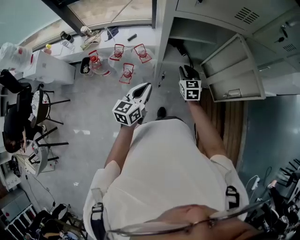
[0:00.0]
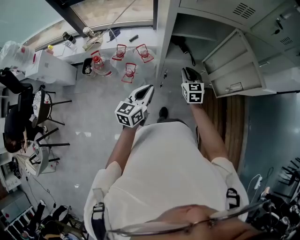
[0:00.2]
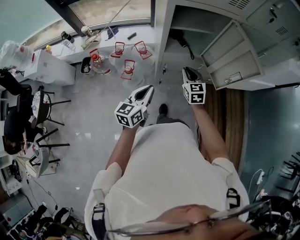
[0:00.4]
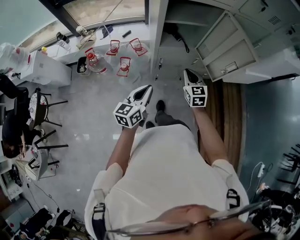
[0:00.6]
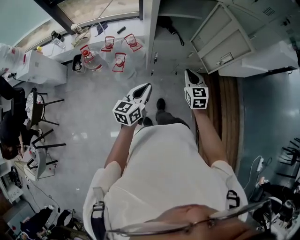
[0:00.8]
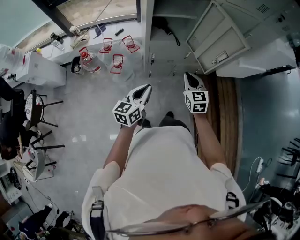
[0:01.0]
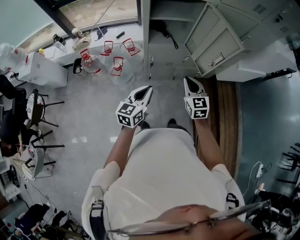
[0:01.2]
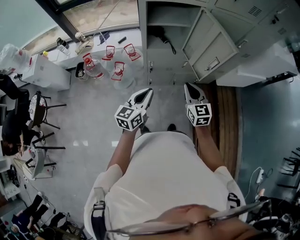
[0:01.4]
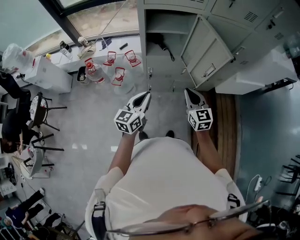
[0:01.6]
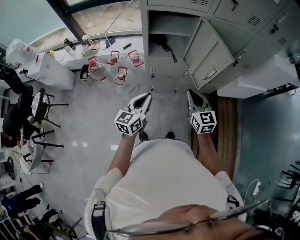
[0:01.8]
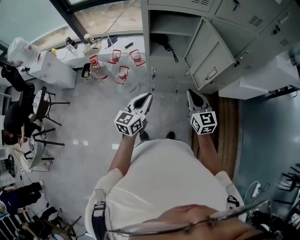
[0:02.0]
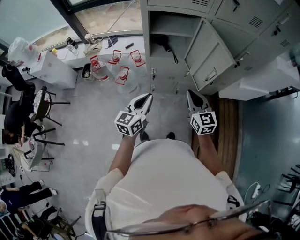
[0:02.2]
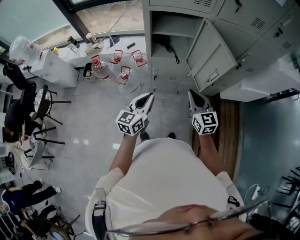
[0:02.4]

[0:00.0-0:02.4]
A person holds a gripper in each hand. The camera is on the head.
0:00.0 to 0:01.2: The grippers both shift backward and to the right by roughly 20 cm.
0:01.2 to 0:02.4: The right gripper is displaced upward by about 5 cm, while the left gripper ends up about 5 cm from where it was.

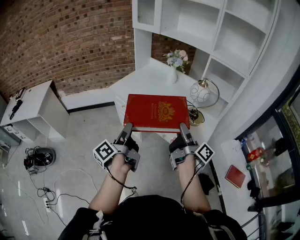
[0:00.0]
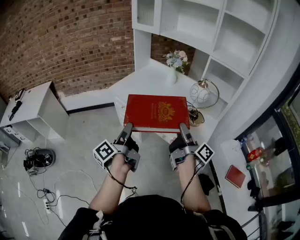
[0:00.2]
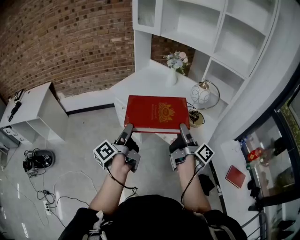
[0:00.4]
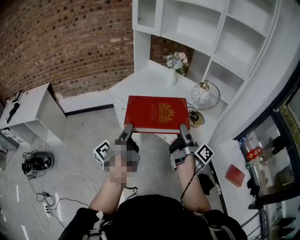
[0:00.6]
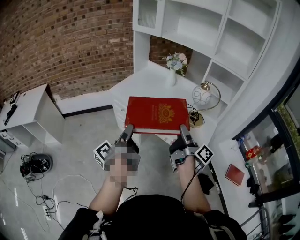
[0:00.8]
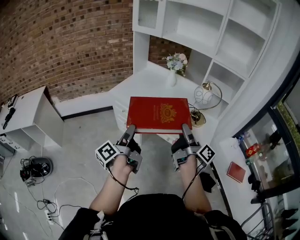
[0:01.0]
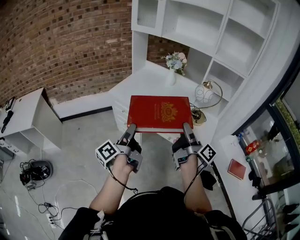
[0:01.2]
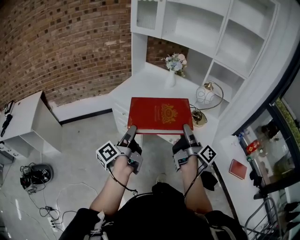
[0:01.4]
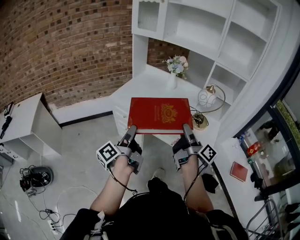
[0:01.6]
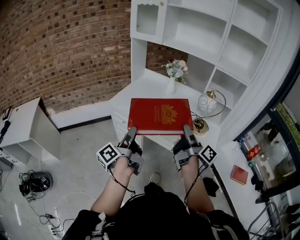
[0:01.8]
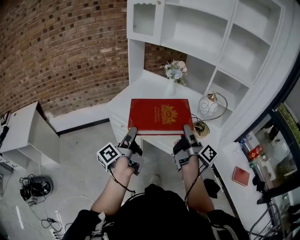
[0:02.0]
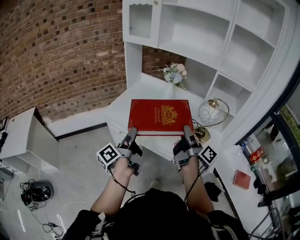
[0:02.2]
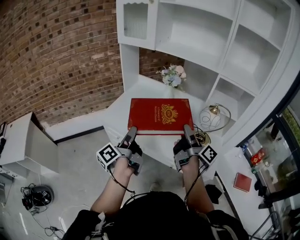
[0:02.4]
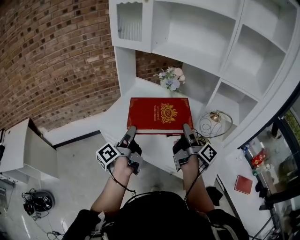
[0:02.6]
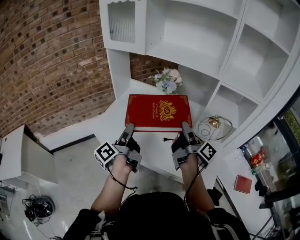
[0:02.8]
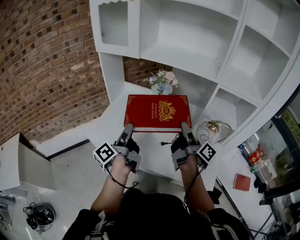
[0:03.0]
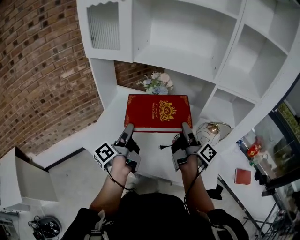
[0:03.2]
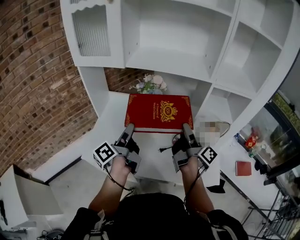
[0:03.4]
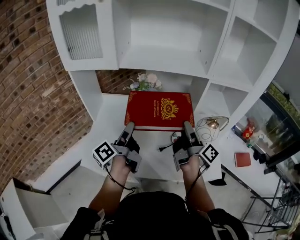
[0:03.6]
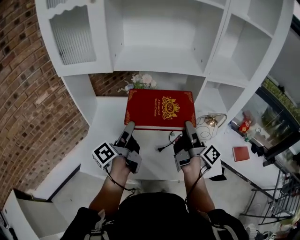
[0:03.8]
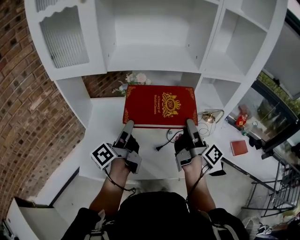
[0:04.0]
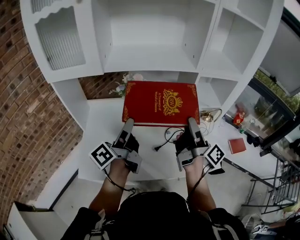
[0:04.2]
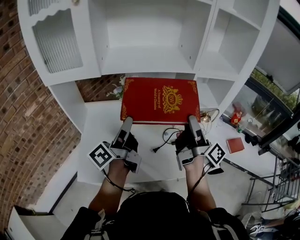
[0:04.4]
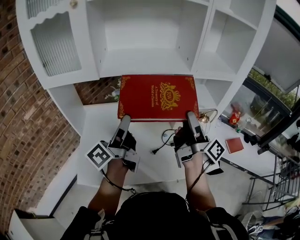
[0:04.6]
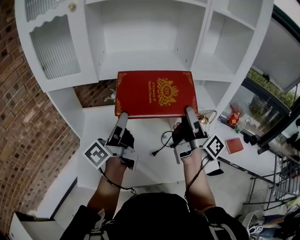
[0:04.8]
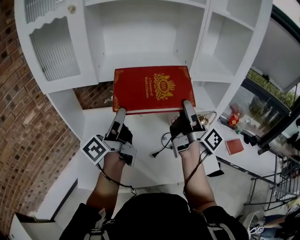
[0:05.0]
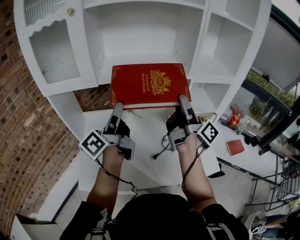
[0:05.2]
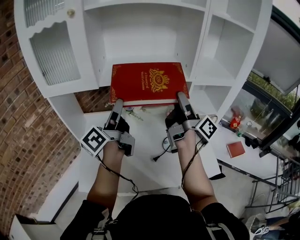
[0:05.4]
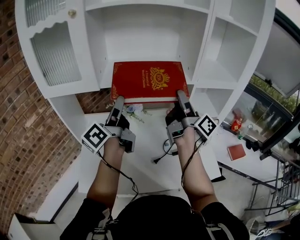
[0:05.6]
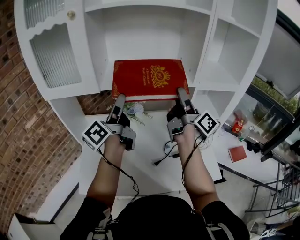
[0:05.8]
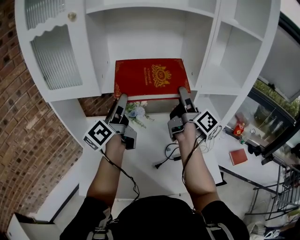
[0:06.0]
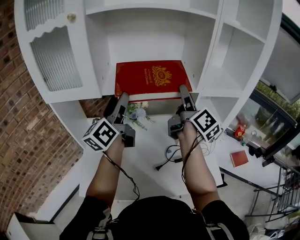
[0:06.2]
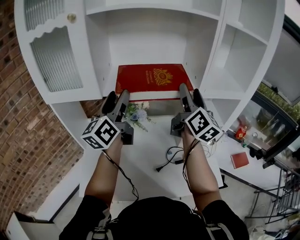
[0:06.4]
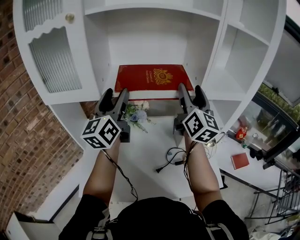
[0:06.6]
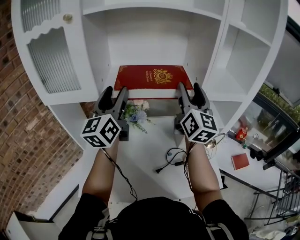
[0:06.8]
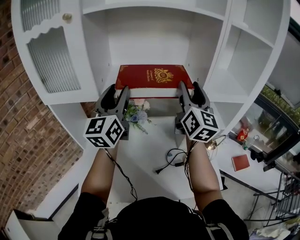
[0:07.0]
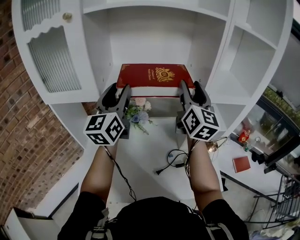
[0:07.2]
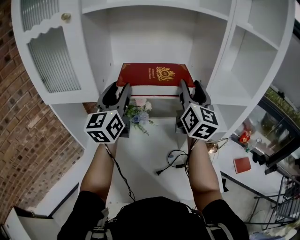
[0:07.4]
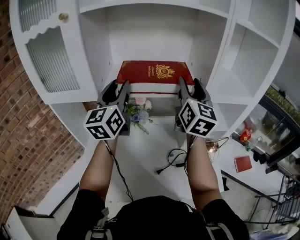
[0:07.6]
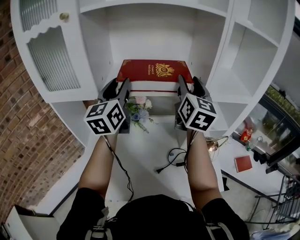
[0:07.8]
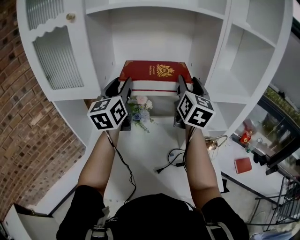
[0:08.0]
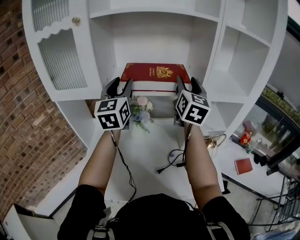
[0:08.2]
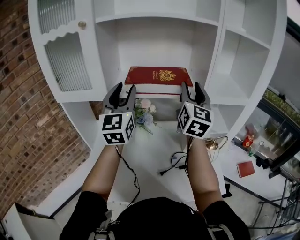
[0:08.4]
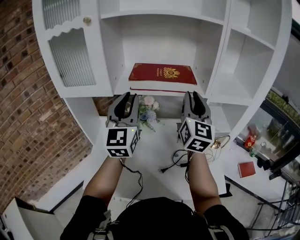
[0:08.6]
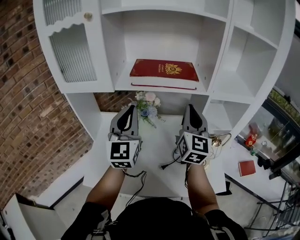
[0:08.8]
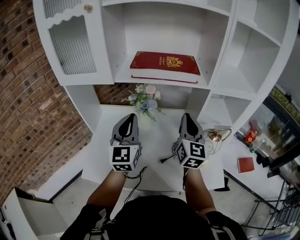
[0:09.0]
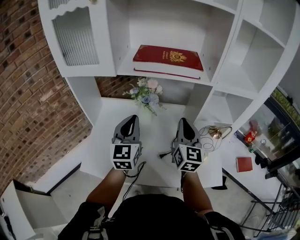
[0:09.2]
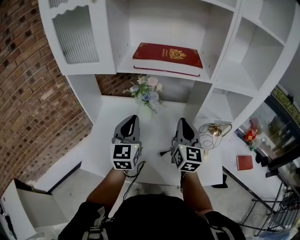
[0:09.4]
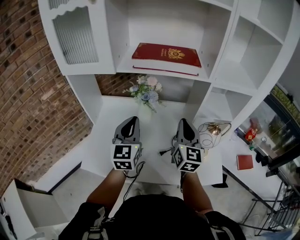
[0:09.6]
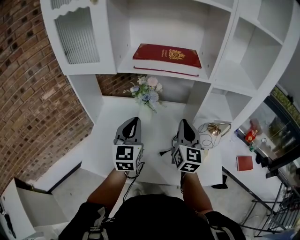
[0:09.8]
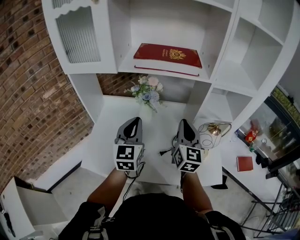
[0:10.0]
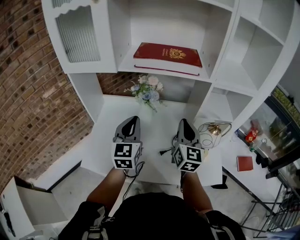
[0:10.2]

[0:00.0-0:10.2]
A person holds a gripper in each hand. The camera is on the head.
0:00.0 to 0:01.4: Both grippers travel together to the left, roughly 10 cm.
0:01.4 to 0:03.0: The two grippers go roughly 40 cm forward.
0:03.0 to 0:04.4: The right gripper heads upward, covering approximately 5 cm, and turns by roughly 30 degrees. The left gripper moves roughly 15 cm, and swivels roughly 30 degrees.
0:04.4 to 0:05.8: Both grippers move forward and upward, approximately 15 cm.
0:05.8 to 0:07.2: The left gripper goes about 5 cm forward, and rolls clockwise, seen from behind, by approximately 60 degrees; the right gripper moves upward and forward, approximately 10 cm, and rotates around the line of its fingers by some 70 degrees, counterclockwise from behind.
0:07.2 to 0:08.8: The left gripper is displaced backward by roughly 10 cm, changes its angle by roughly 20 degrees, and closes its fingers. The right gripper goes about 10 cm backward and downward, and closes its fingers.
0:08.8 to 0:10.2: The right gripper travels downward and backward by about 10 cm. The left gripper is displaced downward by about 10 cm.

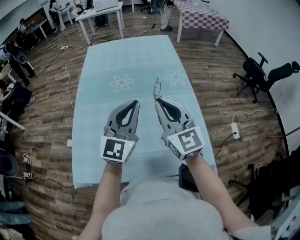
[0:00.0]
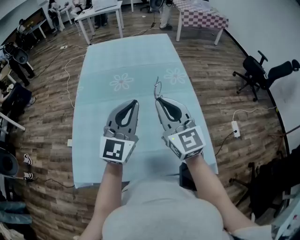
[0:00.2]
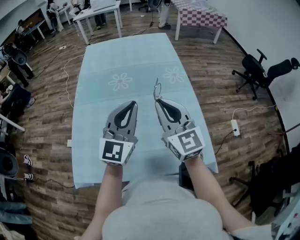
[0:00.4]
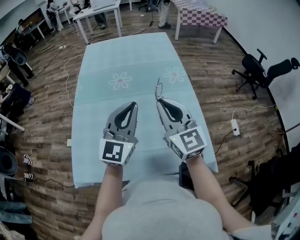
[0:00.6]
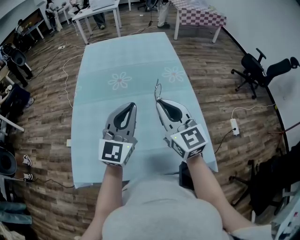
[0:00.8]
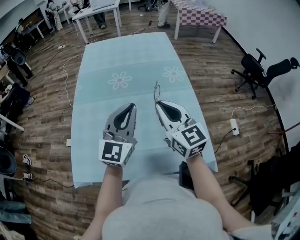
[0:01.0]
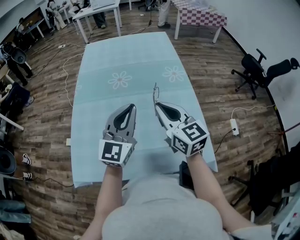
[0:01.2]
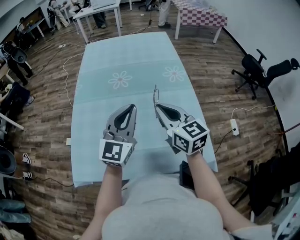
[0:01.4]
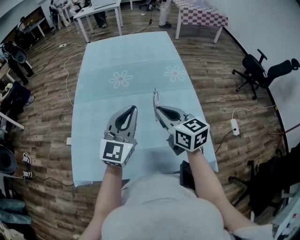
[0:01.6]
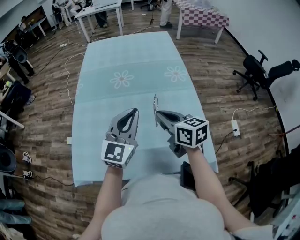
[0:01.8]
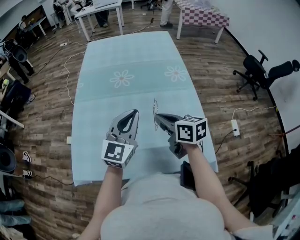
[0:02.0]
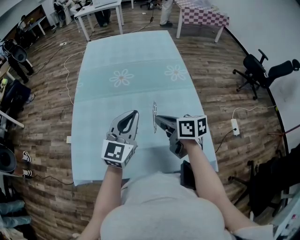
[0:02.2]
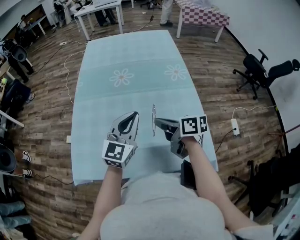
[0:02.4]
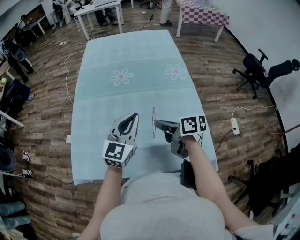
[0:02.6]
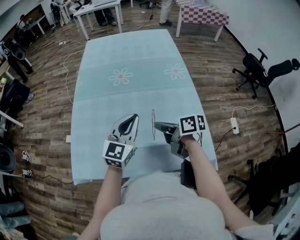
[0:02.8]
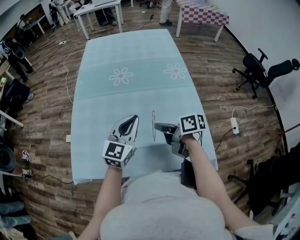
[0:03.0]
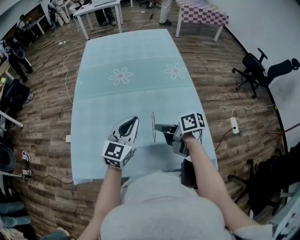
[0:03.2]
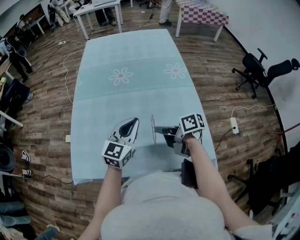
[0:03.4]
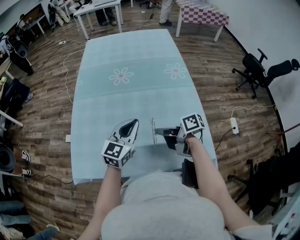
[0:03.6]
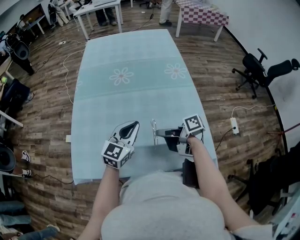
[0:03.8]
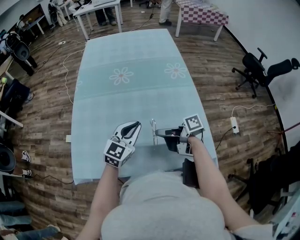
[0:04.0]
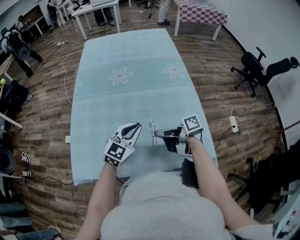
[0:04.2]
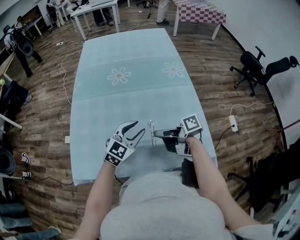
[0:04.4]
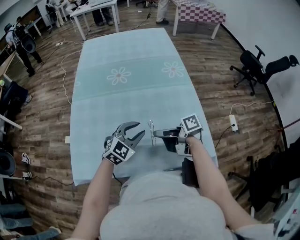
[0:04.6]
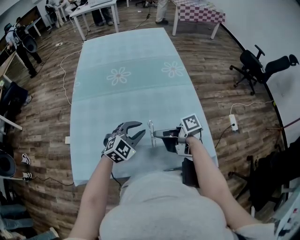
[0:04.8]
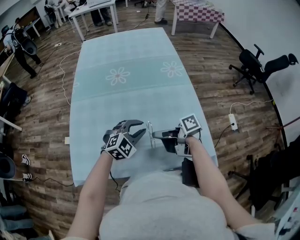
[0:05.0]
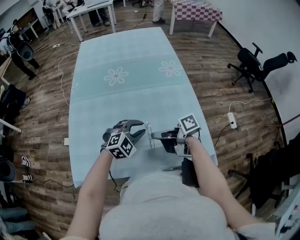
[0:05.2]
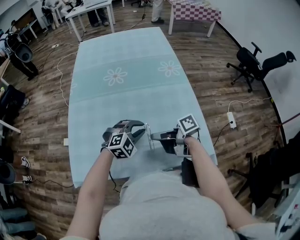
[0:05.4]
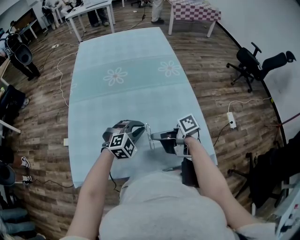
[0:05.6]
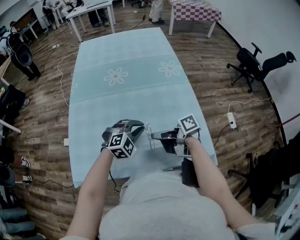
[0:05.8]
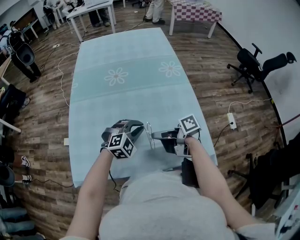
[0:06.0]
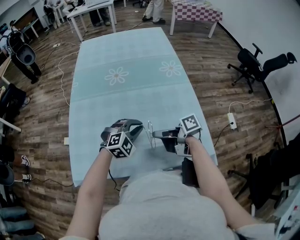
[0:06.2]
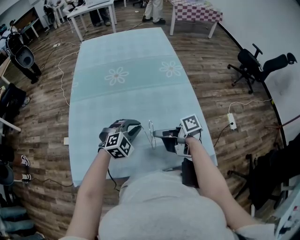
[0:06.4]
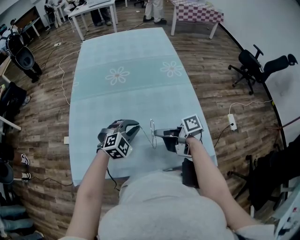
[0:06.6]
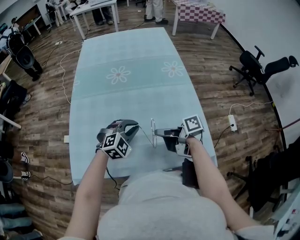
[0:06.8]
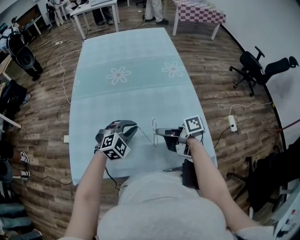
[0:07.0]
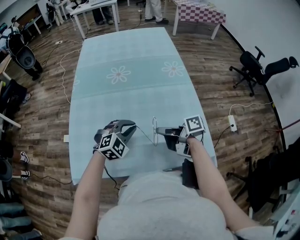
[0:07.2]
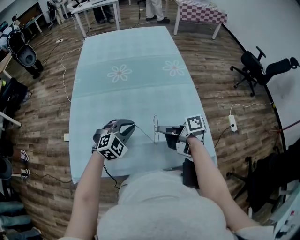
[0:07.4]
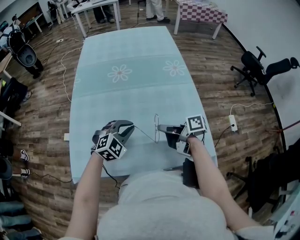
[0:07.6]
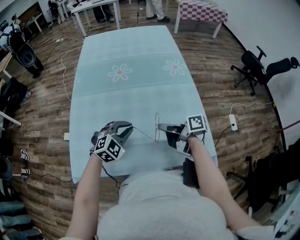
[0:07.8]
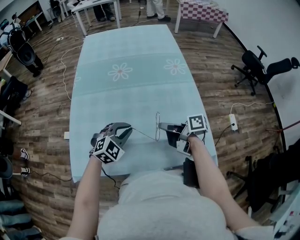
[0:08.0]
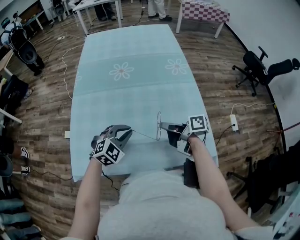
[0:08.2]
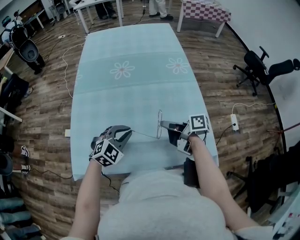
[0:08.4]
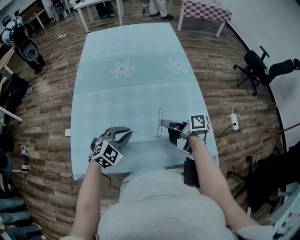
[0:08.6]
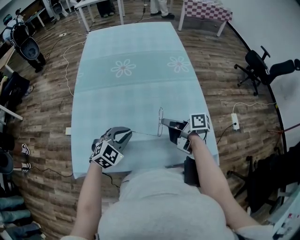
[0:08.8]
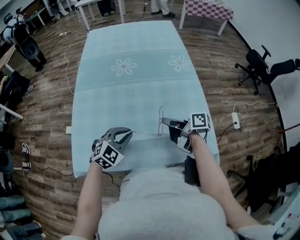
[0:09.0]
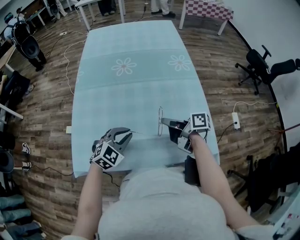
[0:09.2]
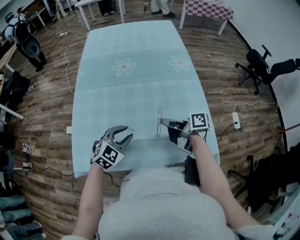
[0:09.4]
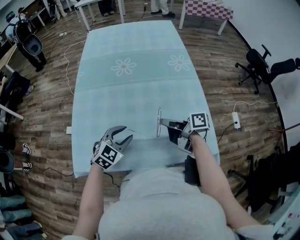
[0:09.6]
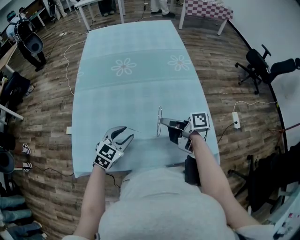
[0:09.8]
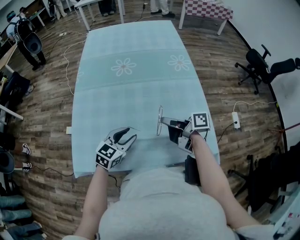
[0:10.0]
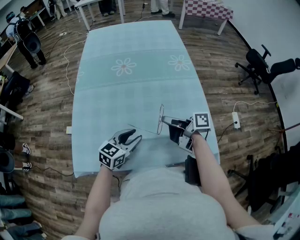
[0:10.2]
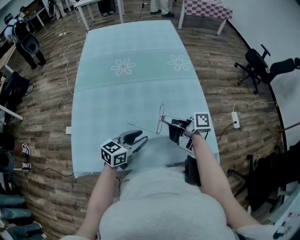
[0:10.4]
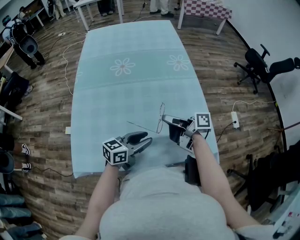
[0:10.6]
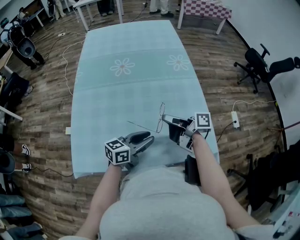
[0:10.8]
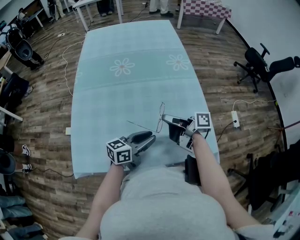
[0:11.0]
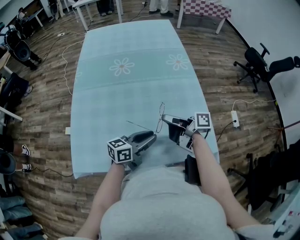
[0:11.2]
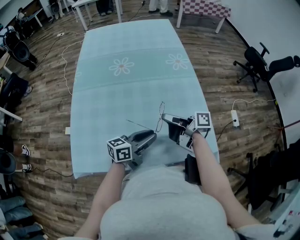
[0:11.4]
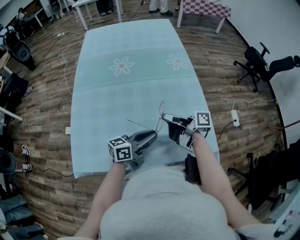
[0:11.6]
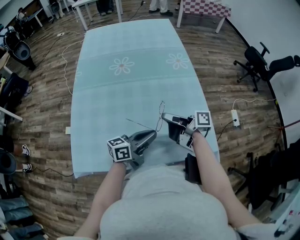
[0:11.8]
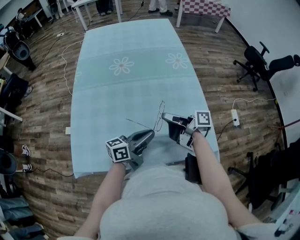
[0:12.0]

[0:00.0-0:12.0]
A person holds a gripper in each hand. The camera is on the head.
0:01.6 to 0:03.0: The left gripper travels downward by roughly 10 cm.
0:03.0 to 0:04.4: The left gripper moves downward, about 5 cm, changes its angle by some 20 degrees, and opens.
0:04.4 to 0:06.0: The left gripper changes place by roughly 5 cm, rotates about 40 degrees, and closes its fingers.
0:06.0 to 0:07.6: The left gripper moves roughly 5 cm.
0:07.6 to 0:09.0: The left gripper shifts by approximately 5 cm.
0:09.0 to 0:10.4: The left gripper moves approximately 5 cm, rolls counterclockwise, seen from behind, by roughly 40 degrees, and opens up.
0:10.4 to 0:12.0: The left gripper turns by some 30 degrees, and closes its fingers.
